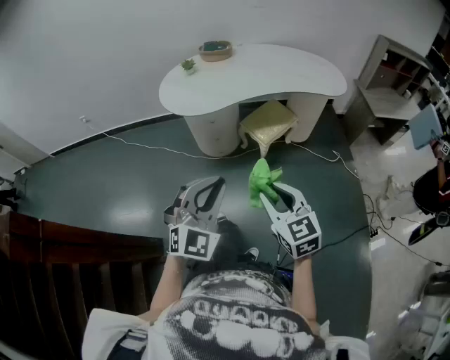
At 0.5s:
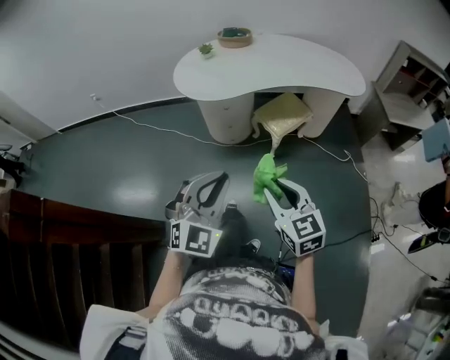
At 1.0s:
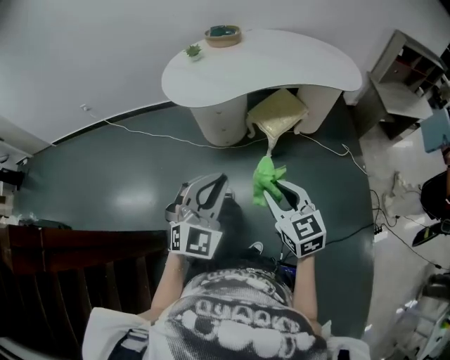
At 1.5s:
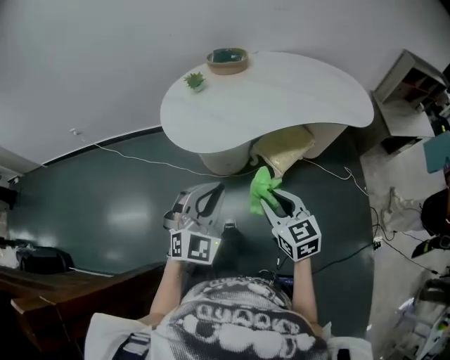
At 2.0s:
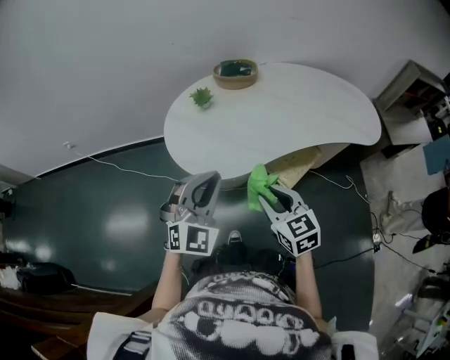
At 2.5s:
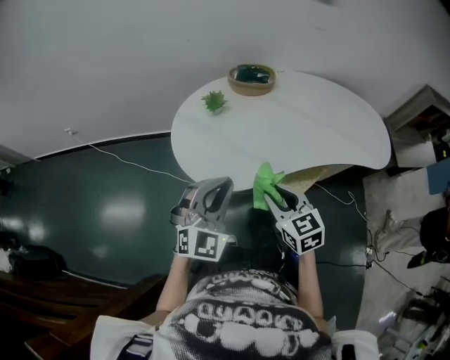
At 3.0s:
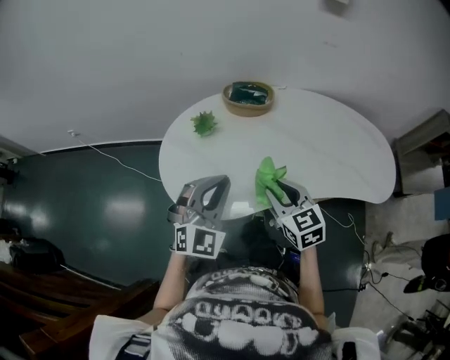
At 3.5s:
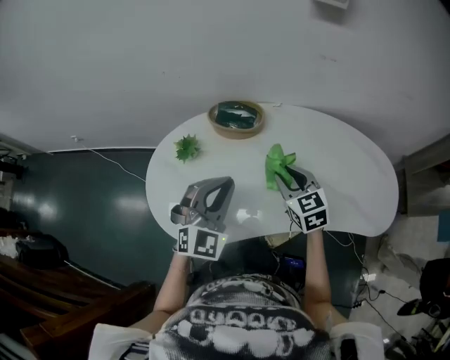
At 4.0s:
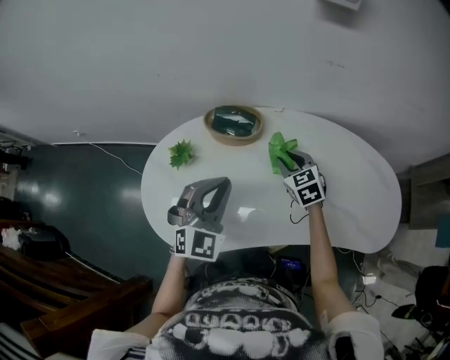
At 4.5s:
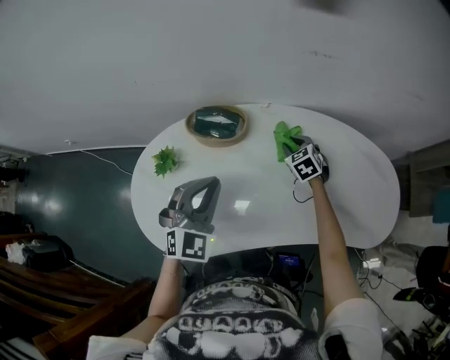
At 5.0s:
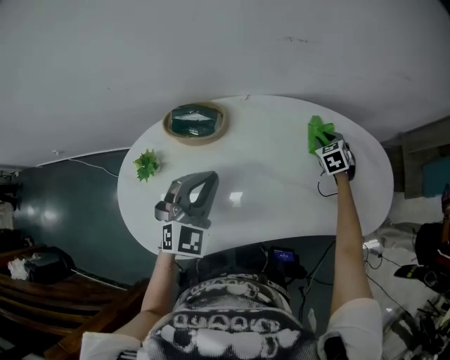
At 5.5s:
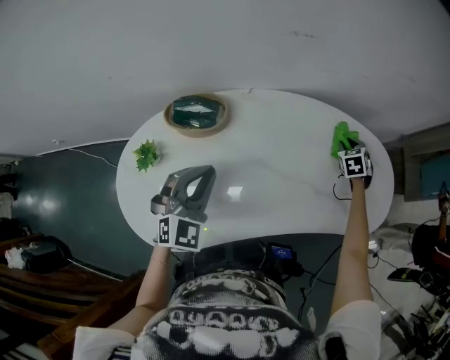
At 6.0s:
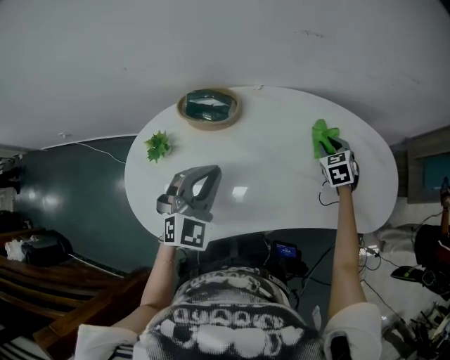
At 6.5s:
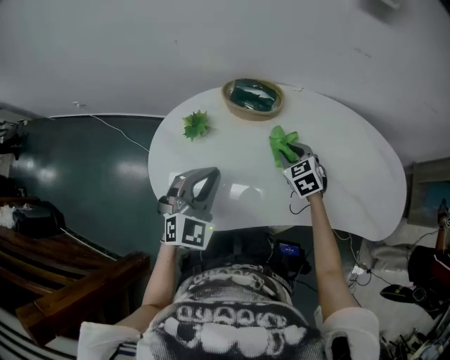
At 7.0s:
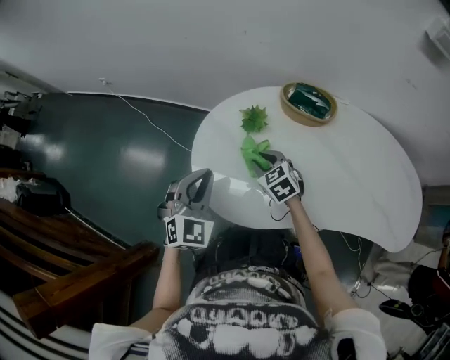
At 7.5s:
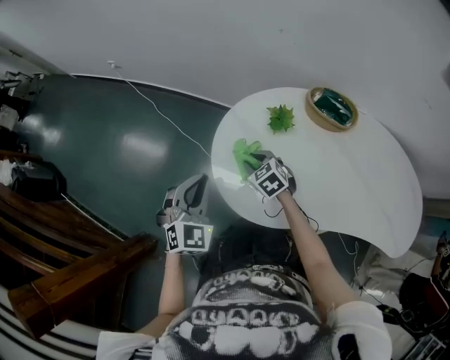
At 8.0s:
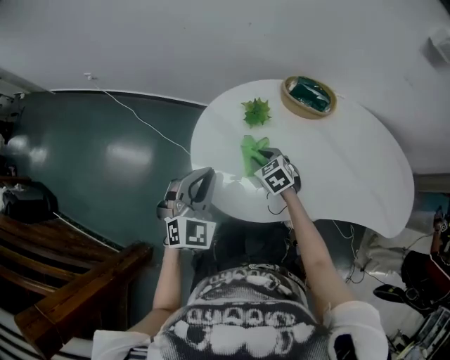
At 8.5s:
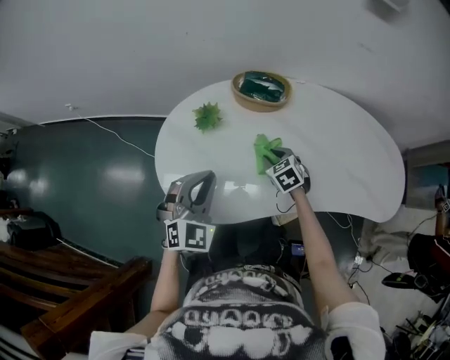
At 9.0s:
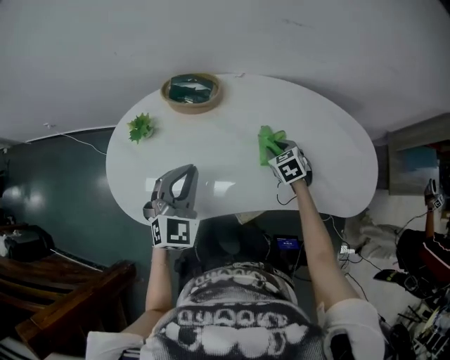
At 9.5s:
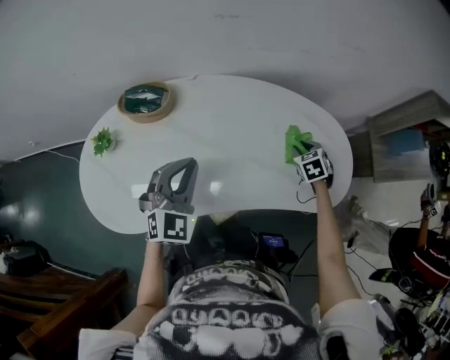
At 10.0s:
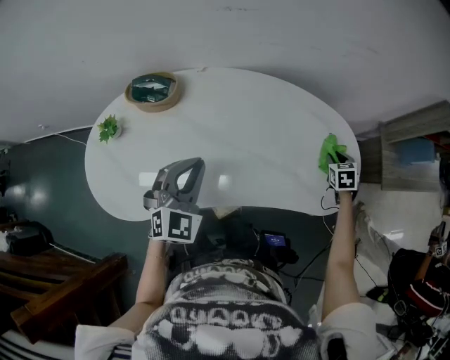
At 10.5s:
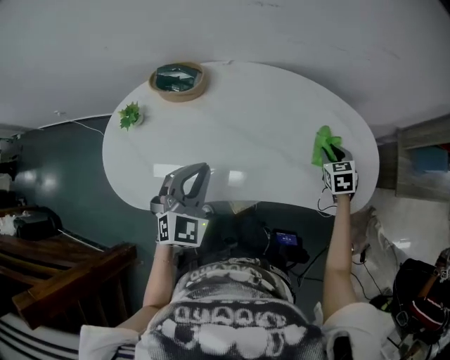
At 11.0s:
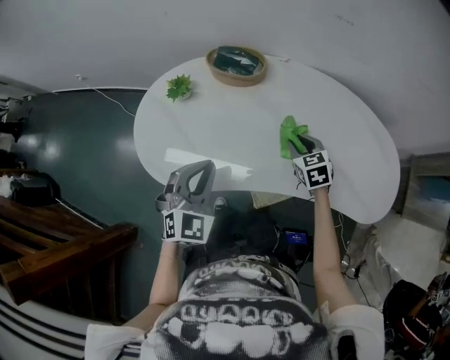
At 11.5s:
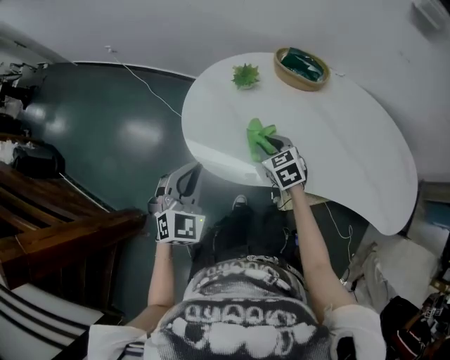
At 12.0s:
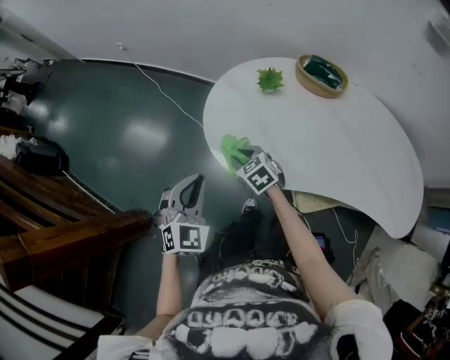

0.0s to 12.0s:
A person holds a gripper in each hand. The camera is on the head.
0.0s to 2.0s: The pair of grippers is taken forward, some 40 cm.
2.0s to 4.0s: Both grippers move forward and to the right, roughly 50 cm.
4.0s to 6.0s: The right gripper changes its angle by roughly 20 degrees.
6.0s to 8.0s: The right gripper moves about 60 cm, and turns by about 30 degrees; the left gripper changes place by approximately 35 cm.
8.0s to 10.0s: The two grippers travel together, some 70 cm. The right gripper swivels roughly 50 degrees.
10.0s to 12.0s: The two grippers travel together, approximately 70 cm. The left gripper changes its angle by roughly 30 degrees. The right gripper changes its angle by some 60 degrees.

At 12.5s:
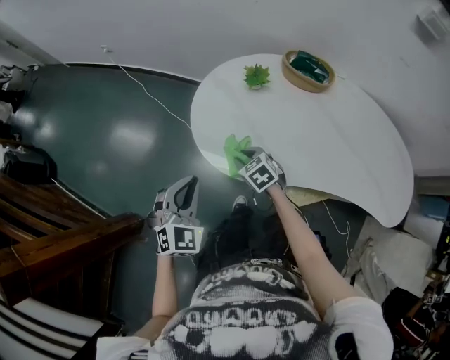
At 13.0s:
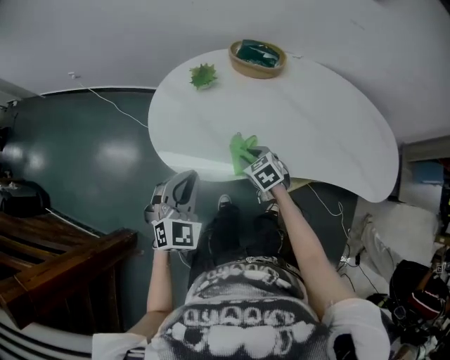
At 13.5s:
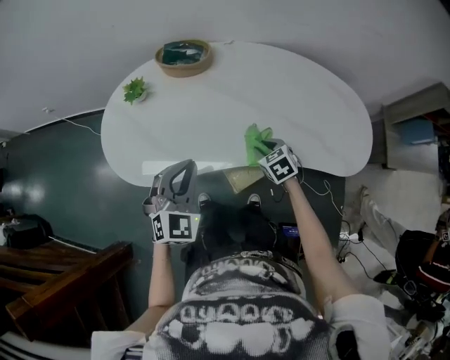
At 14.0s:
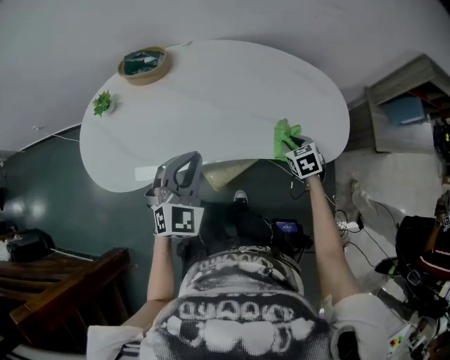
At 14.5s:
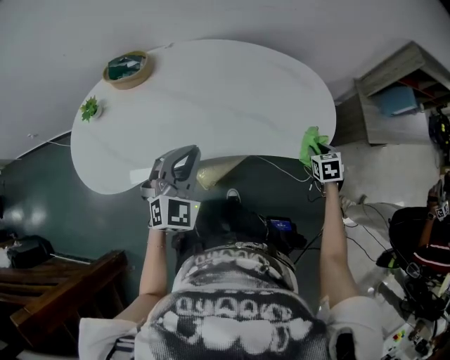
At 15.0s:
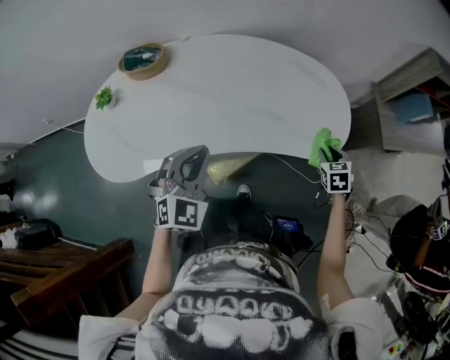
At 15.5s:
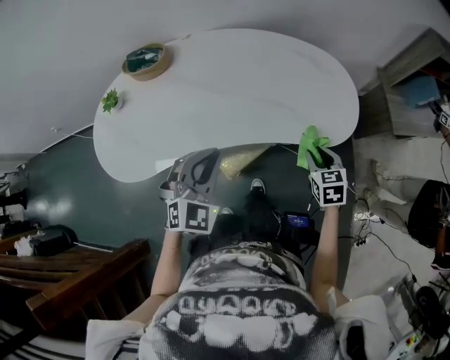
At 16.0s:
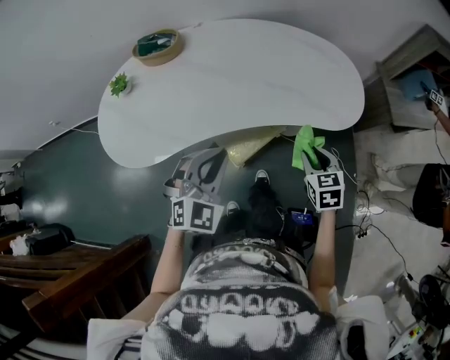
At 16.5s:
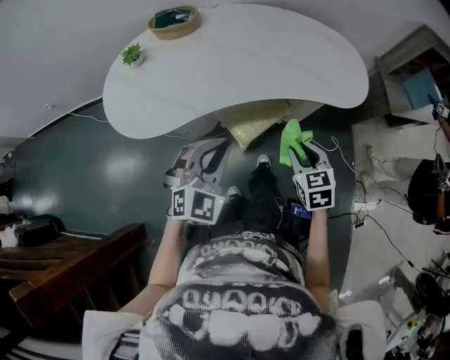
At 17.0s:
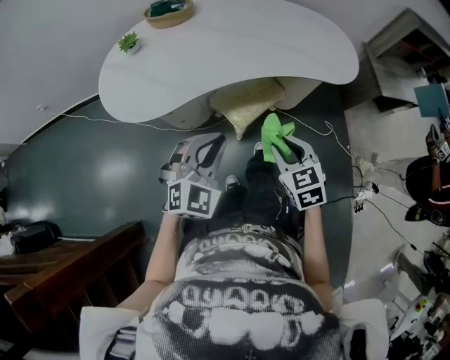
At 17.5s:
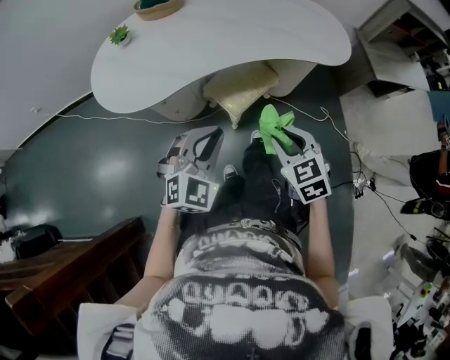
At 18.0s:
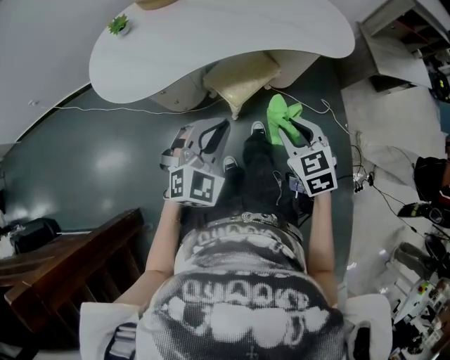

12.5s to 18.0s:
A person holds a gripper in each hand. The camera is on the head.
12.5s to 14.5s: The pair of grippers is taken about 70 cm. The right gripper turns by approximately 60 degrees. The left gripper turns by about 30 degrees.
14.5s to 16.0s: The right gripper heads to the left, backward and upward, covering approximately 25 cm; the left gripper heads backward, covering roughly 10 cm.
16.0s to 18.0s: The left gripper heads backward, covering approximately 20 cm, while the right gripper travels backward and to the left by some 25 cm.

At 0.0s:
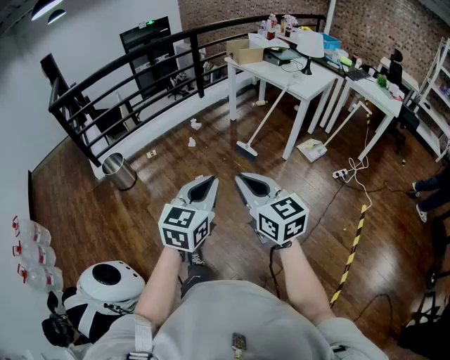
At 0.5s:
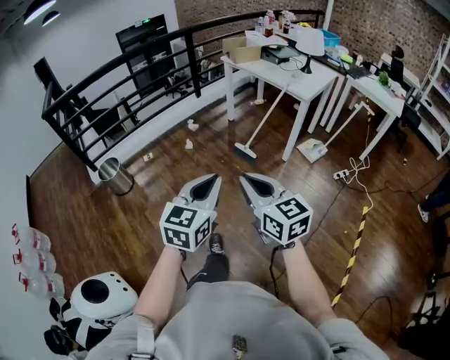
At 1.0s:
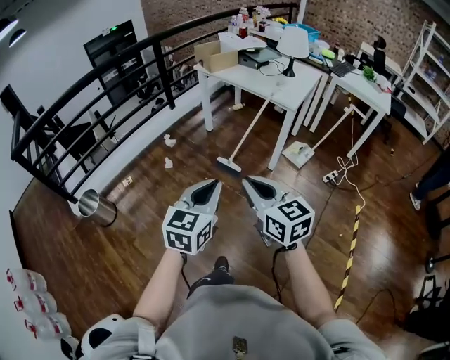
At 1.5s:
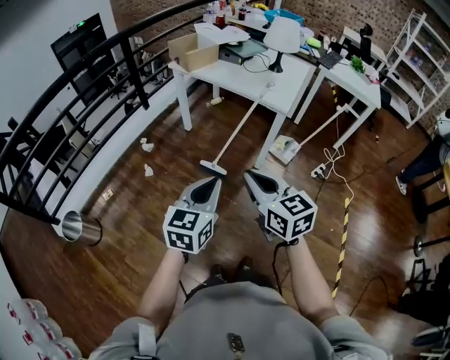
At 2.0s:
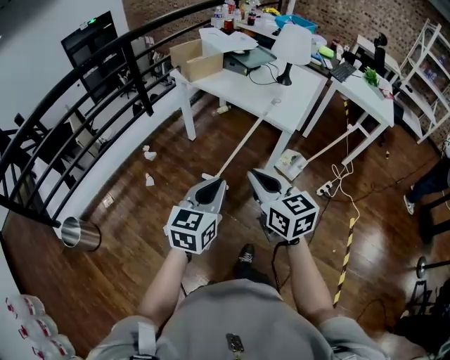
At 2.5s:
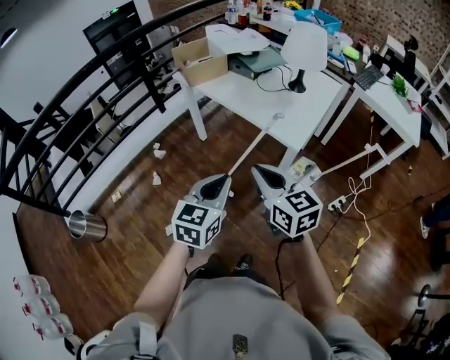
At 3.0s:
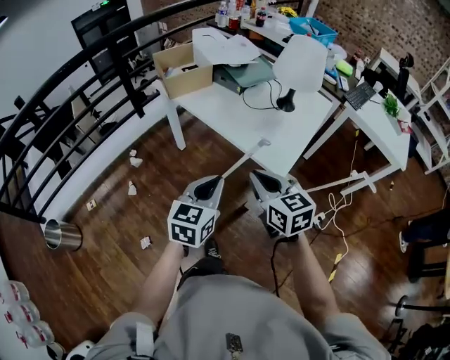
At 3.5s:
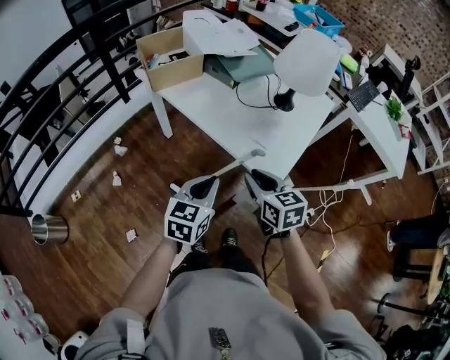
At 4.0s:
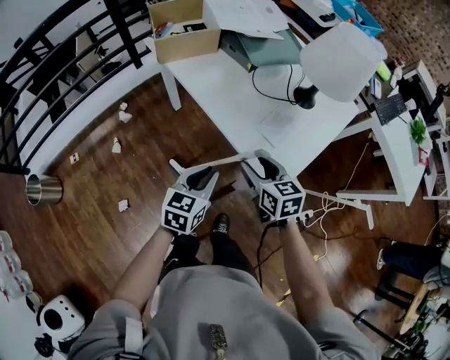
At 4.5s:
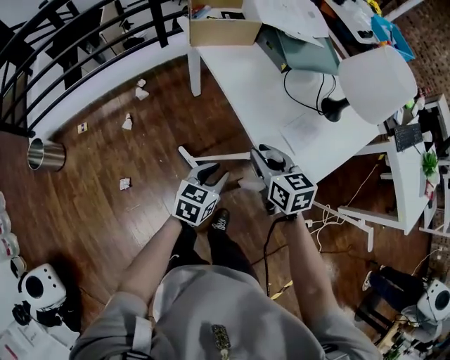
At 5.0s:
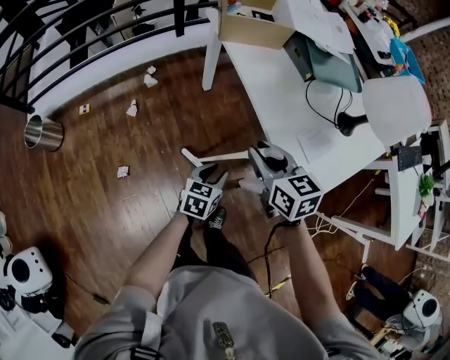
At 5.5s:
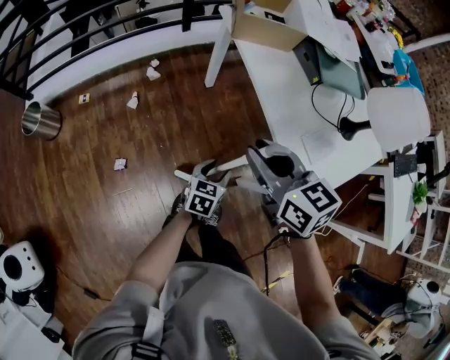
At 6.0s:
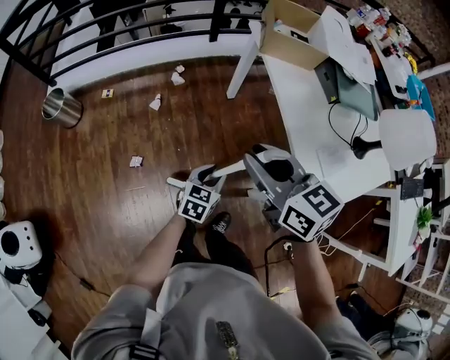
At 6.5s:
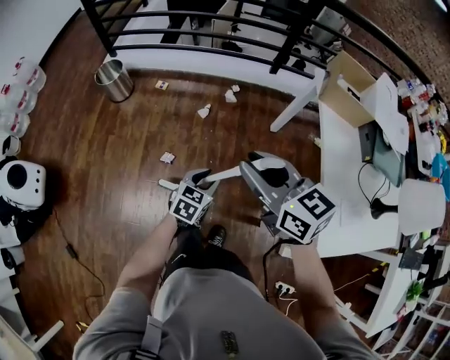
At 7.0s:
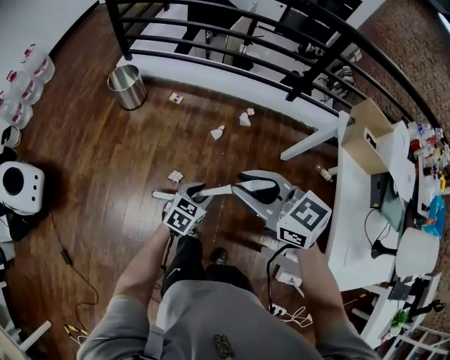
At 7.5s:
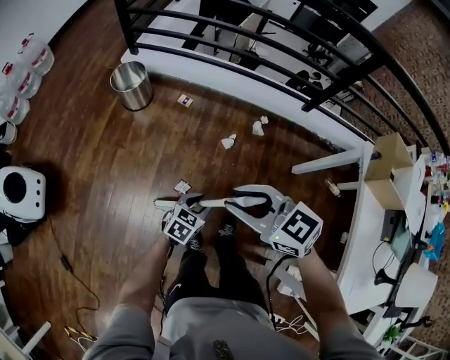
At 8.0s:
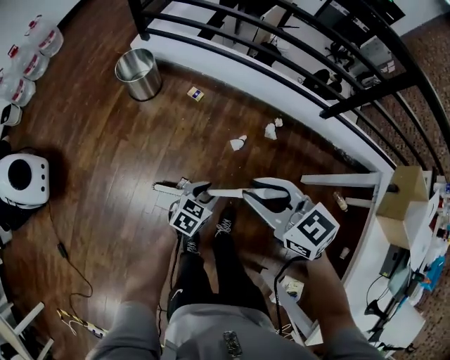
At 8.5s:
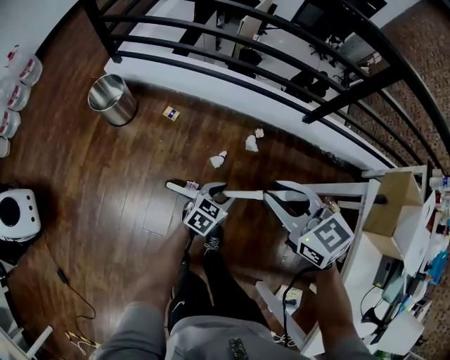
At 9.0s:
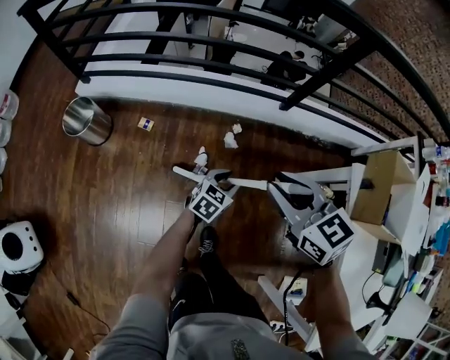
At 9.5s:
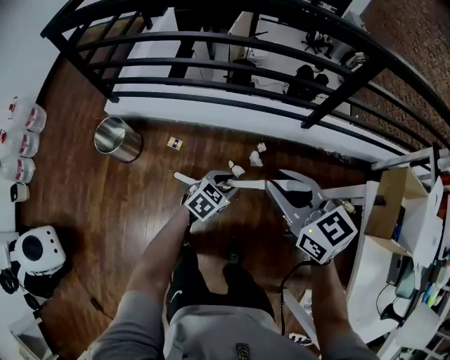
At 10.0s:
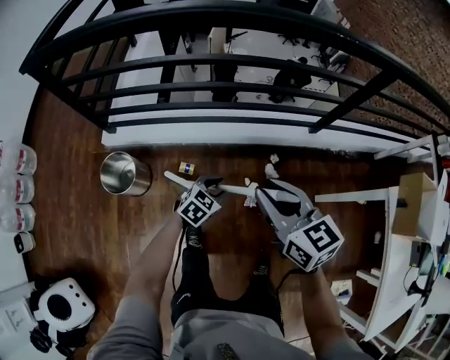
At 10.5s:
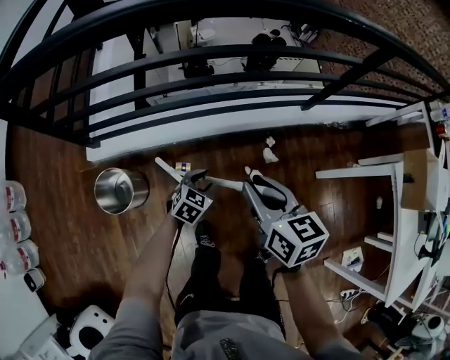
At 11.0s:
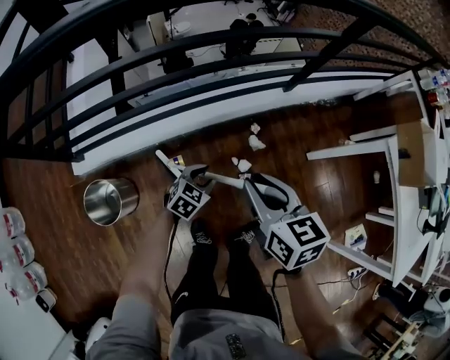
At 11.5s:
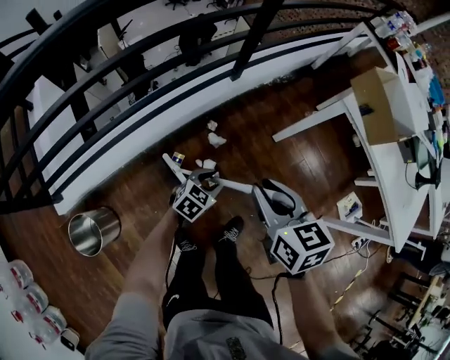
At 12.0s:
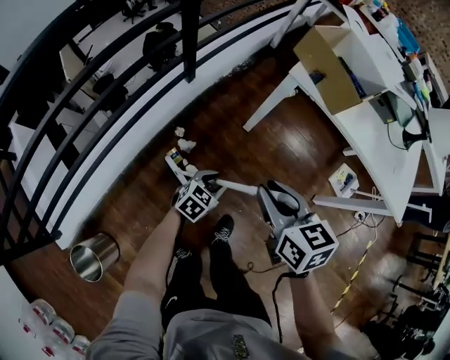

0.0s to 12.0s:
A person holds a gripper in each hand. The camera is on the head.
0.0s to 2.0s: The pair of grippers is taken forward, roughly 50 cm.
2.0s to 4.0s: The two grippers go roughly 50 cm forward, to the right and downward. The right gripper changes its angle by roughly 20 degrees, and opens up.
4.0s to 6.0s: The left gripper shifts by about 20 cm, and swivels roughly 20 degrees; the right gripper changes place by some 30 cm, swivels some 40 degrees, and closes its fingers.
6.0s to 8.0s: The pair of grippers is taken approximately 40 cm. The left gripper changes its angle by about 30 degrees; the right gripper rotates roughly 50 degrees.
8.0s to 10.0s: The right gripper moves about 30 cm, and changes its angle by roughly 40 degrees, while the left gripper shifts by some 35 cm, and changes its angle by some 30 degrees.
10.0s to 12.0s: The right gripper changes place by about 35 cm, and turns by roughly 60 degrees. The left gripper ends up roughly 35 cm from where it was, and rotates some 50 degrees.
